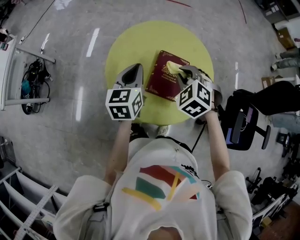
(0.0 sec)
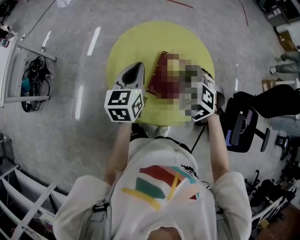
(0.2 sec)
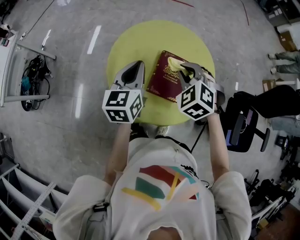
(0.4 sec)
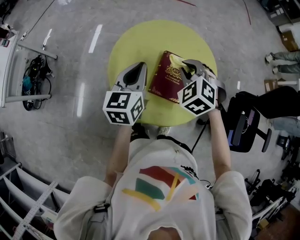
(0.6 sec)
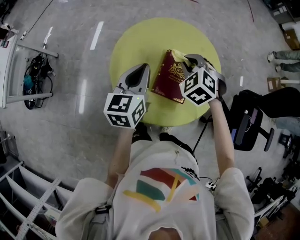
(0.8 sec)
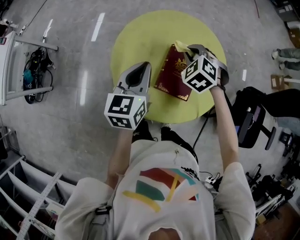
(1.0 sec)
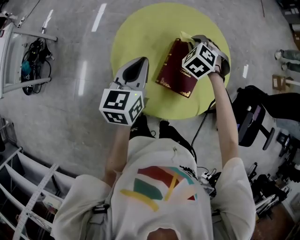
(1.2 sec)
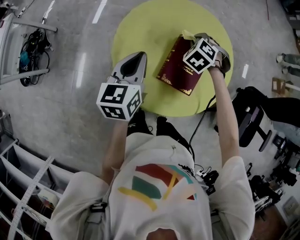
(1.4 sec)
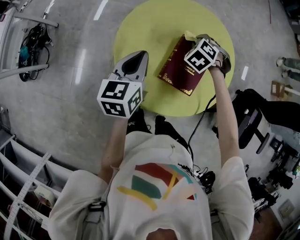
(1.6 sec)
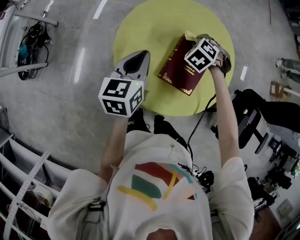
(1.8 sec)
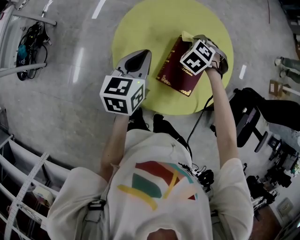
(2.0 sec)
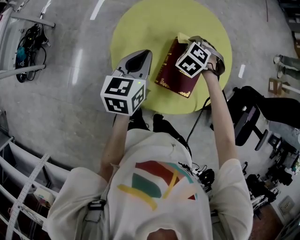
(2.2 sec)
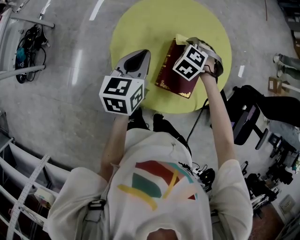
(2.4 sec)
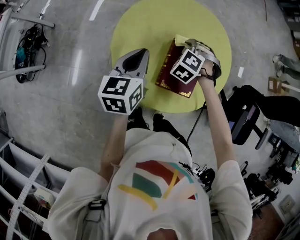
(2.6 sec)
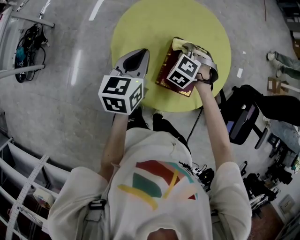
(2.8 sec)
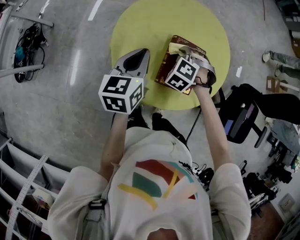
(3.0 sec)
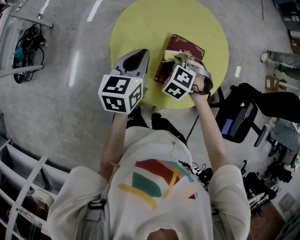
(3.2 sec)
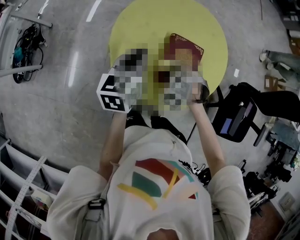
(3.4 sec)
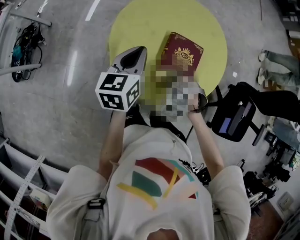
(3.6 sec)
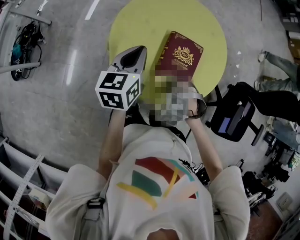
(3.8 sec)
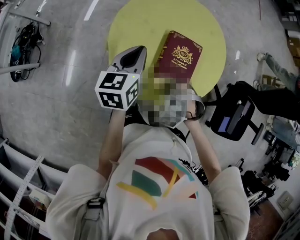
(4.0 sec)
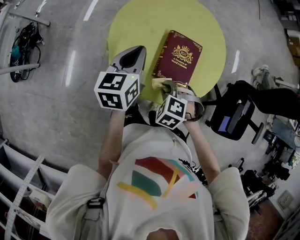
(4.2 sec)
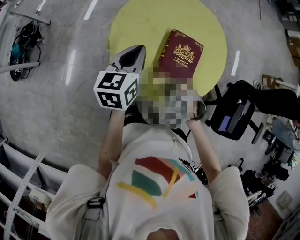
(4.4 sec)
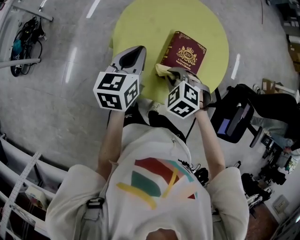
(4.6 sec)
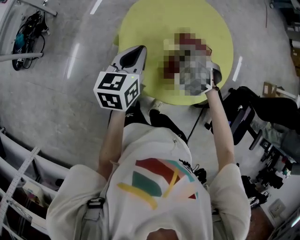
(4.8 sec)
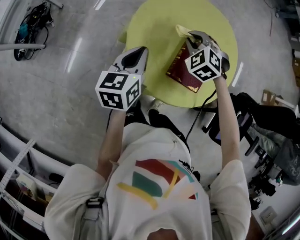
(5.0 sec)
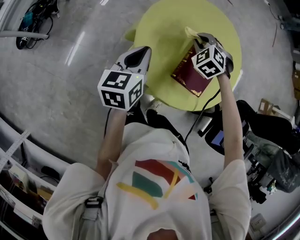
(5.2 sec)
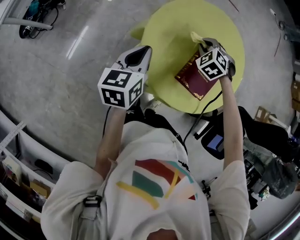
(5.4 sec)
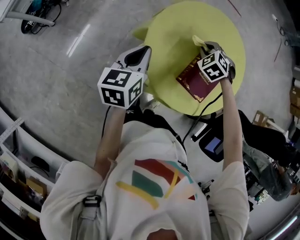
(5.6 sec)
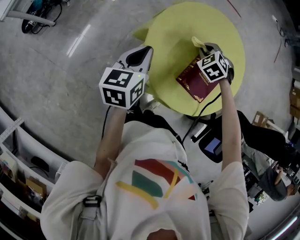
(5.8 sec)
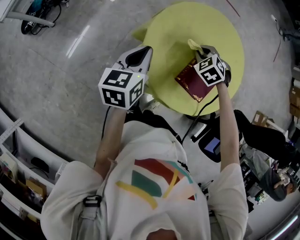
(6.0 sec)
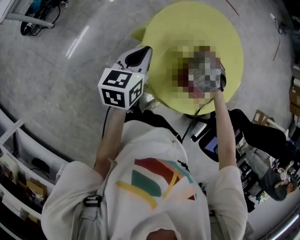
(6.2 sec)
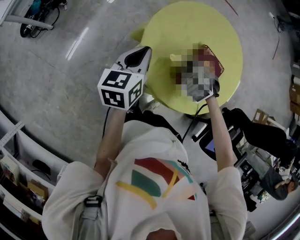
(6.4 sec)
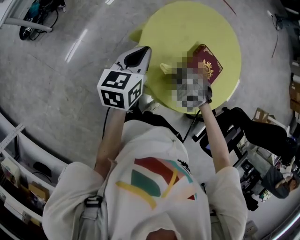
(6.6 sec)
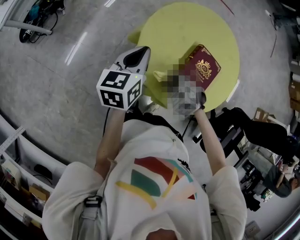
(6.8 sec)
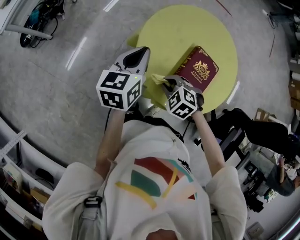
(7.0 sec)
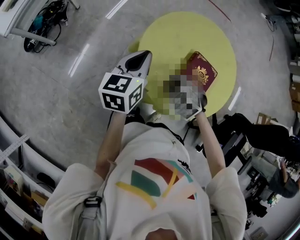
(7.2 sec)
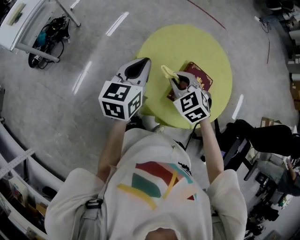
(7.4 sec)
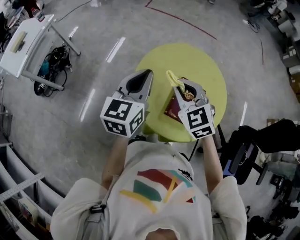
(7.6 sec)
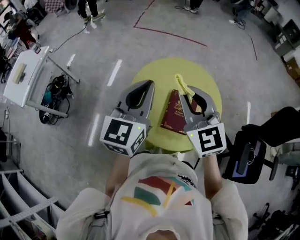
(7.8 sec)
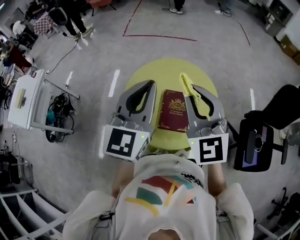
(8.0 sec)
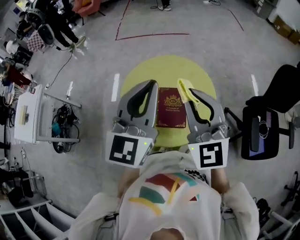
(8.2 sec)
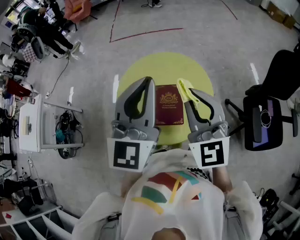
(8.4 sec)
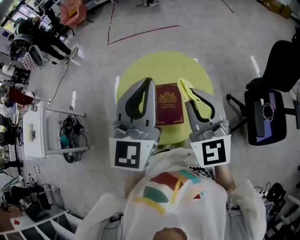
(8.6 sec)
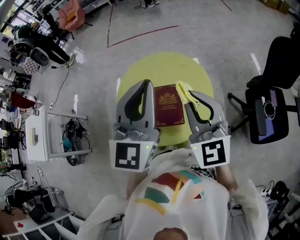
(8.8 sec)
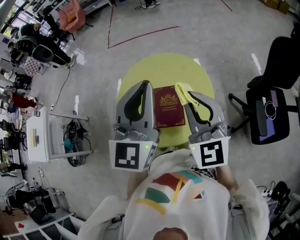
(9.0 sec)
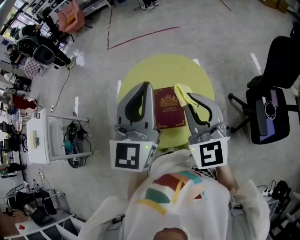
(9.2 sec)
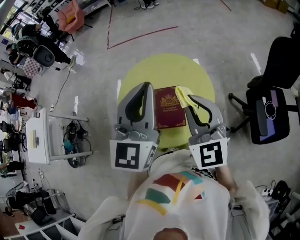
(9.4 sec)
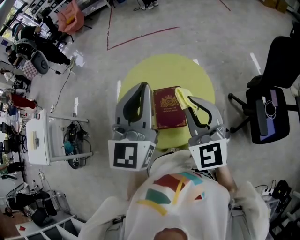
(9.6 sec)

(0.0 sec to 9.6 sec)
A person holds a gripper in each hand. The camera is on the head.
0.0 sec - 1.6 sec: The right gripper goes roughly 20 cm downward and forward.
1.6 sec - 3.2 sec: The right gripper is displaced backward by approximately 15 cm.
3.2 sec - 4.8 sec: The right gripper moves upward, some 5 cm.
4.8 sec - 6.4 sec: The right gripper is displaced downward by roughly 5 cm, and travels forward and back again, some 10 cm each way; the left gripper heads to the left, covering roughly 5 cm.
6.4 sec - 8.0 sec: Both grippers travel together upward, about 35 cm. The right gripper points its fingers about 70 degrees further upward. The left gripper swivels about 50 degrees.
8.0 sec - 9.6 sec: The right gripper moves to the right and downward, about 10 cm. Meanwhile the left gripper moves to the right, roughly 10 cm.

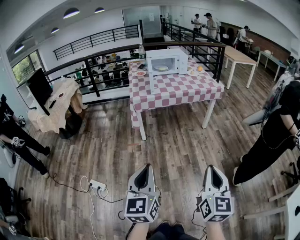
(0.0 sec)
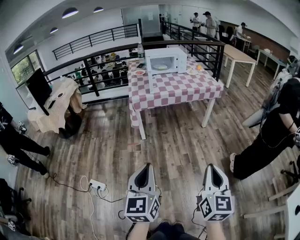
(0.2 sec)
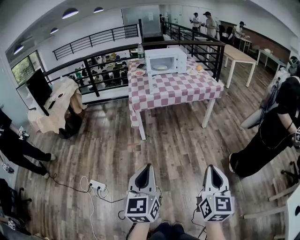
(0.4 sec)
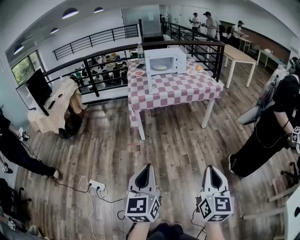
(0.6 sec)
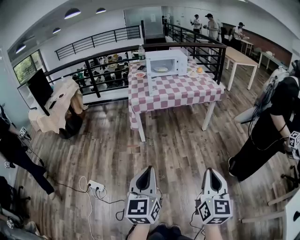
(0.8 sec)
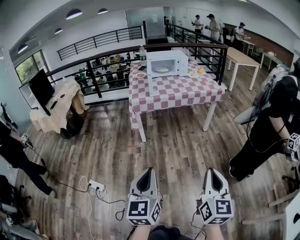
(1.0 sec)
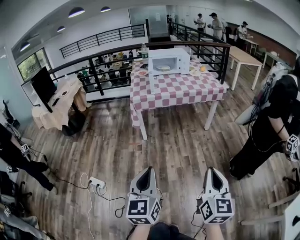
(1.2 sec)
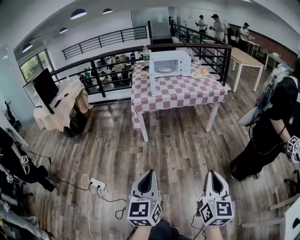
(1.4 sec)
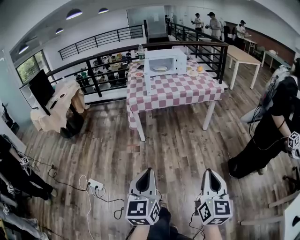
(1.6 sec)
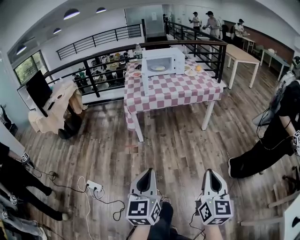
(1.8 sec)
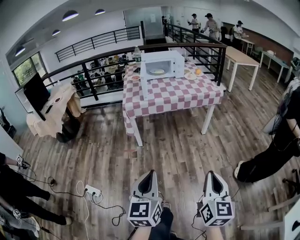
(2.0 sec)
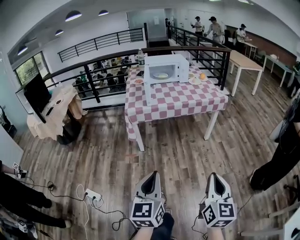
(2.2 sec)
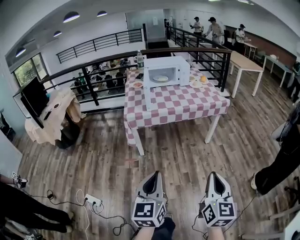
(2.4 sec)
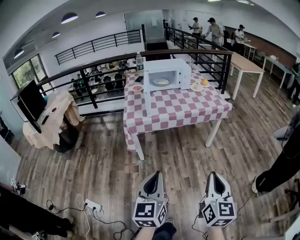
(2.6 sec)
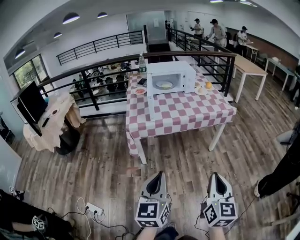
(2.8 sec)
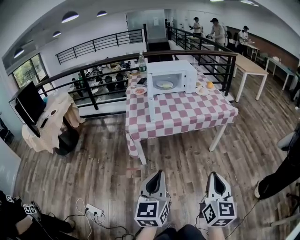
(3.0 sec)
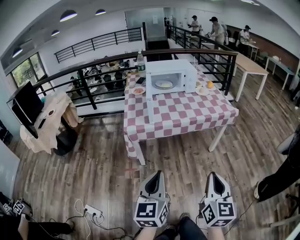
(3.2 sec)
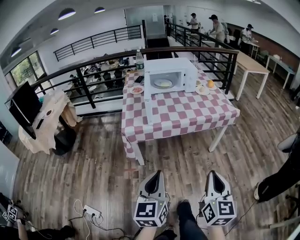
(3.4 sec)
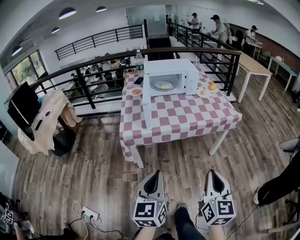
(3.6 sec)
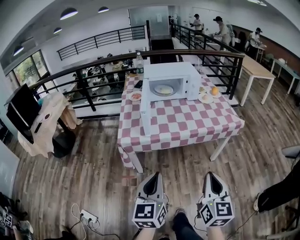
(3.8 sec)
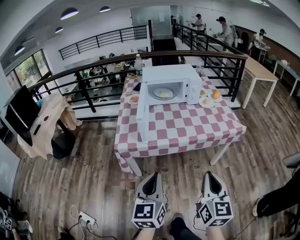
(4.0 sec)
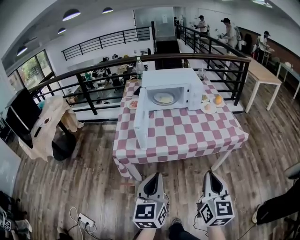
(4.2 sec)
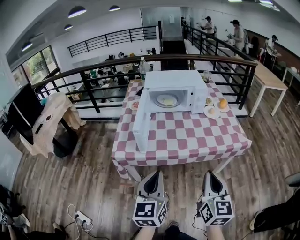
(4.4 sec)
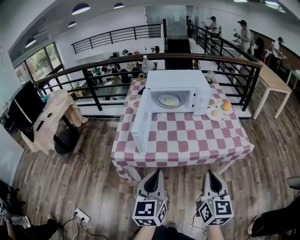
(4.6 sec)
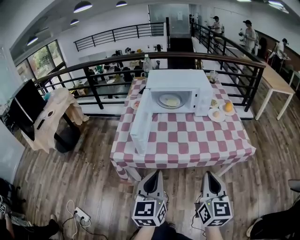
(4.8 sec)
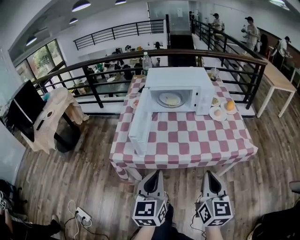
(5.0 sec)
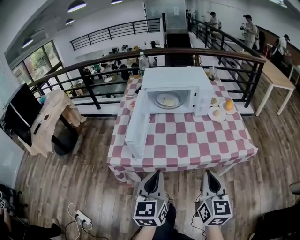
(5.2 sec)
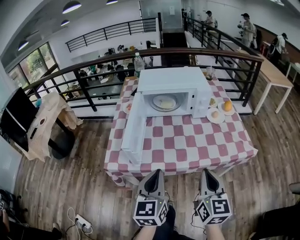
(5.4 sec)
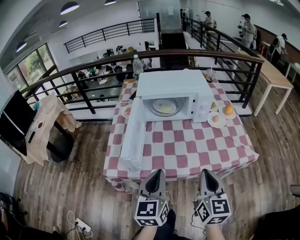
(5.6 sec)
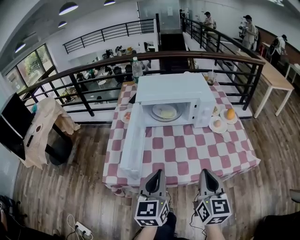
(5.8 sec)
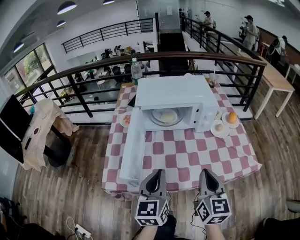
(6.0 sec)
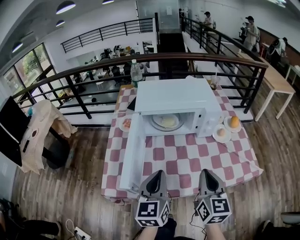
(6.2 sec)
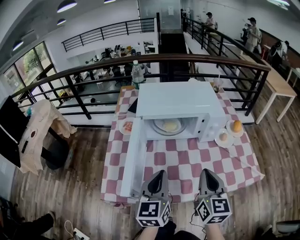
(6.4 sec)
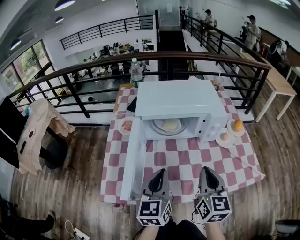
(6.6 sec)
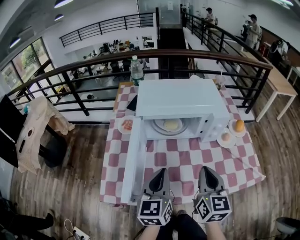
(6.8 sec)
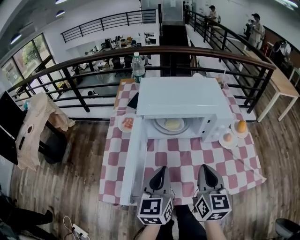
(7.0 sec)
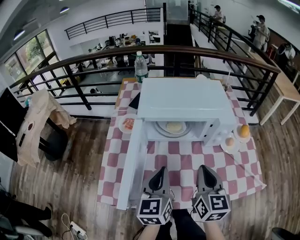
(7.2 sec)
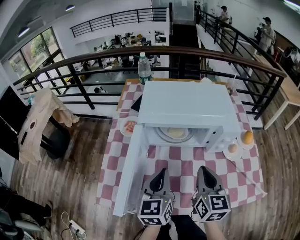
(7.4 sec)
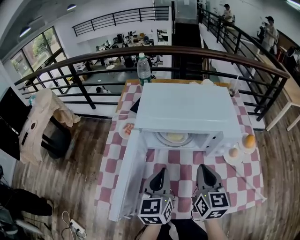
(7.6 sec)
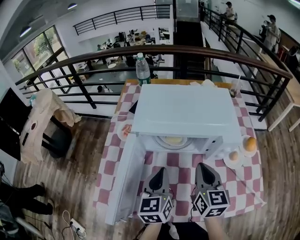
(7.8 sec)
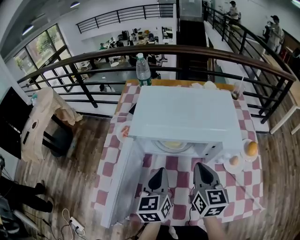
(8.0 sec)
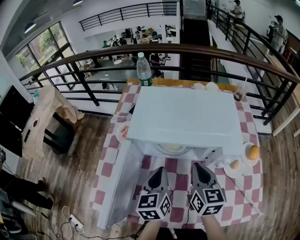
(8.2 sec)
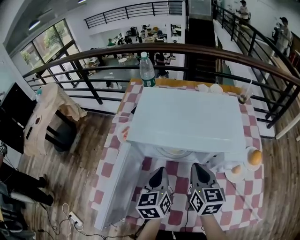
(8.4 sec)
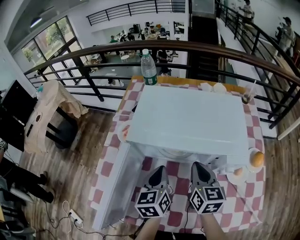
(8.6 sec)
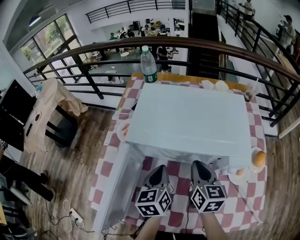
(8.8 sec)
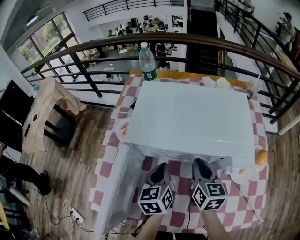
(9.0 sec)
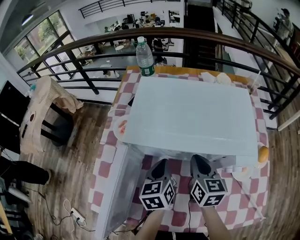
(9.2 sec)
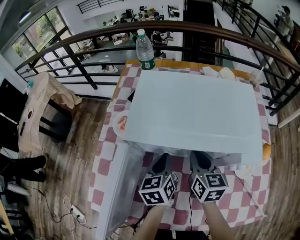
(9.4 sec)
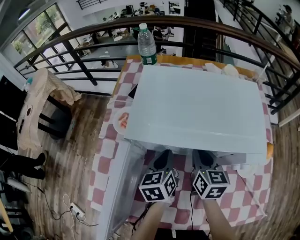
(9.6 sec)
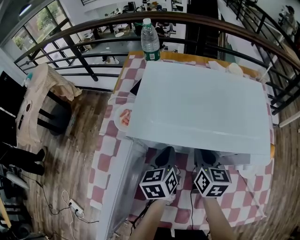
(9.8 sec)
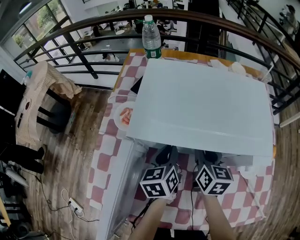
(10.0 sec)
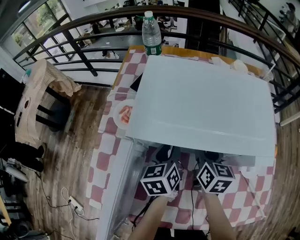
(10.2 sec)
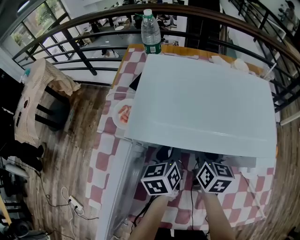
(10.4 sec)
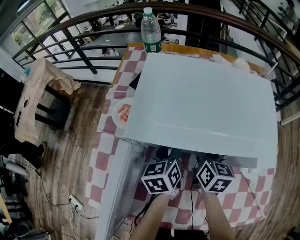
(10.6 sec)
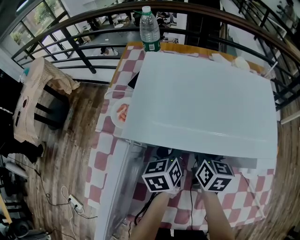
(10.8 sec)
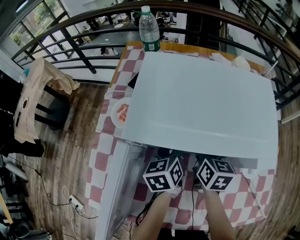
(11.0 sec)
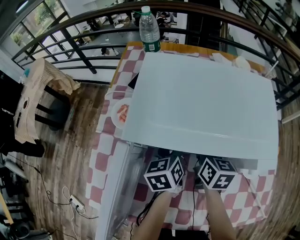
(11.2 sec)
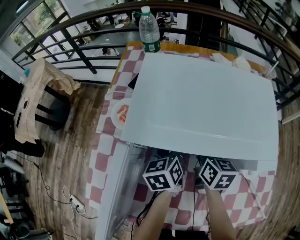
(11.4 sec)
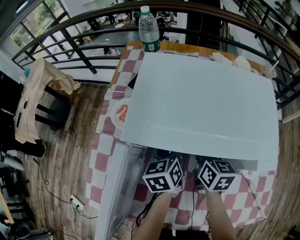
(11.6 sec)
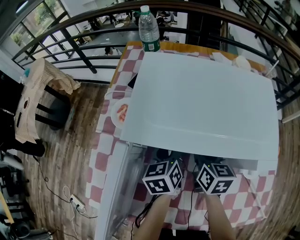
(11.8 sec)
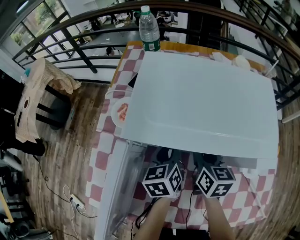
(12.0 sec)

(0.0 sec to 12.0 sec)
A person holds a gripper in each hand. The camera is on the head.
0.0 sec - 1.6 sec: The grippers both shift to the right by some 5 cm.
1.6 sec - 3.0 sec: The two grippers go roughly 30 cm forward.
3.0 sec - 4.4 sec: The grippers both shift forward by about 30 cm.
4.4 sec - 6.0 sec: The two grippers go roughly 25 cm forward.
6.0 sec - 7.6 sec: Both grippers move forward, some 20 cm.
7.6 sec - 9.0 sec: Both grippers travel together forward and downward, approximately 15 cm.
9.0 sec - 10.4 sec: The left gripper is displaced forward and downward by about 10 cm, and opens up; the right gripper shifts approximately 10 cm downward and forward, and opens its fingers.
10.4 sec - 12.0 sec: The grippers move only a little.

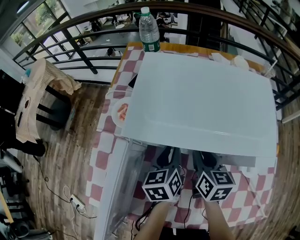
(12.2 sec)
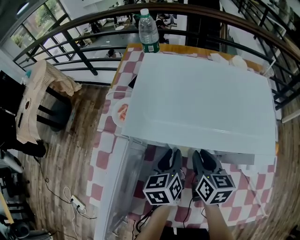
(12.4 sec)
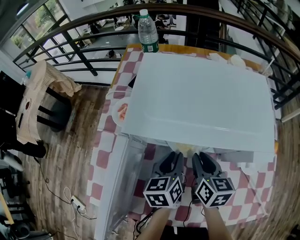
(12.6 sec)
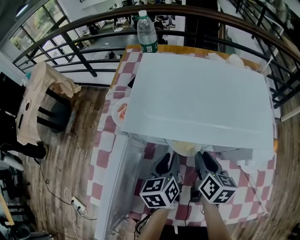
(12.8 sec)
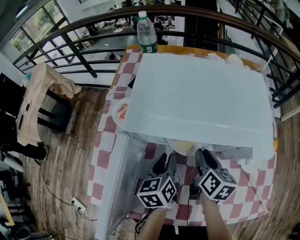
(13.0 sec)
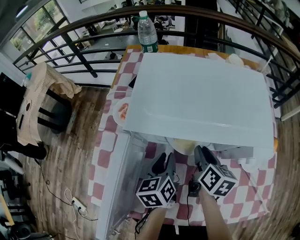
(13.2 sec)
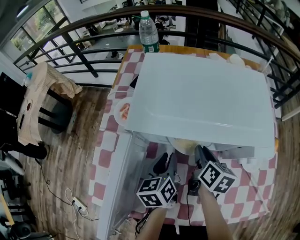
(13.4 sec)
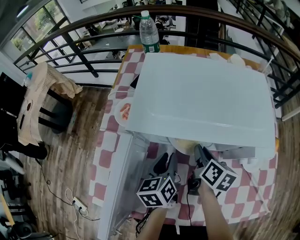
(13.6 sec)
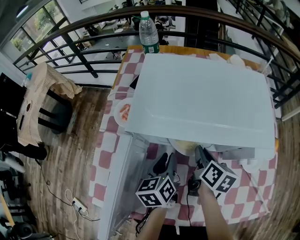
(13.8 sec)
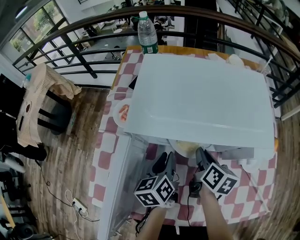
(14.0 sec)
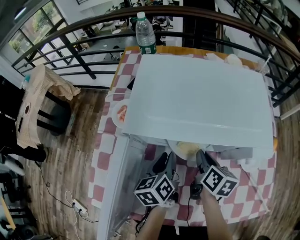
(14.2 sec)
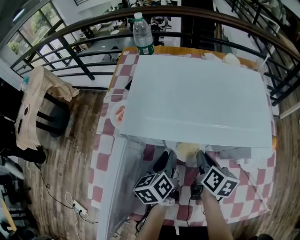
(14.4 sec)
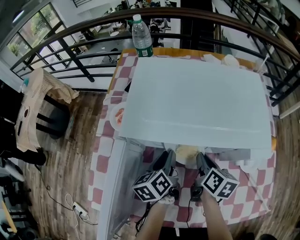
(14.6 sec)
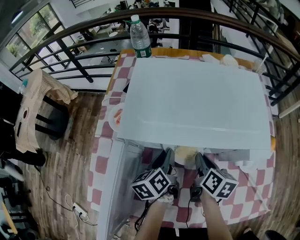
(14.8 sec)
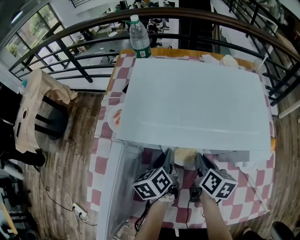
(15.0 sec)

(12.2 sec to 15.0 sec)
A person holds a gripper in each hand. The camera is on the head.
12.2 sec - 13.6 sec: The right gripper changes its angle by some 30 degrees.
13.6 sec - 15.0 sec: There are only small adjustments of the grippers.
